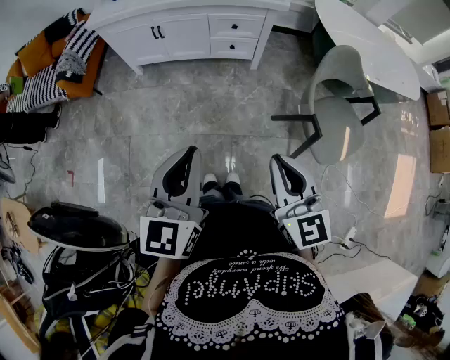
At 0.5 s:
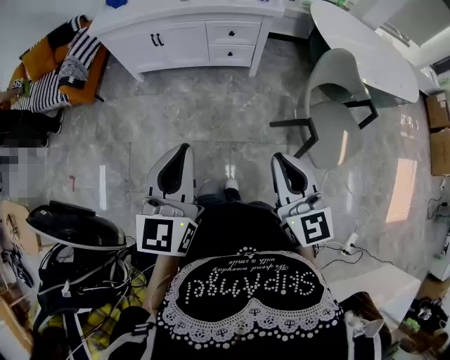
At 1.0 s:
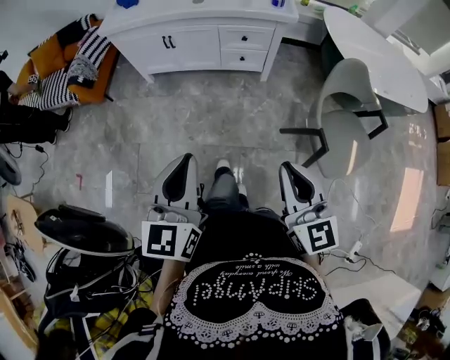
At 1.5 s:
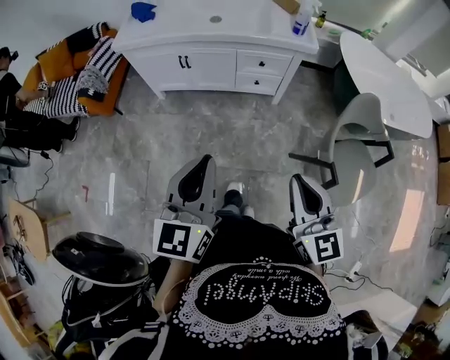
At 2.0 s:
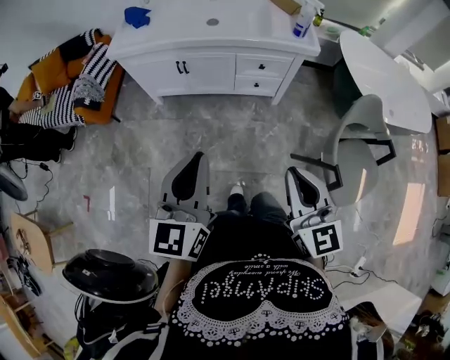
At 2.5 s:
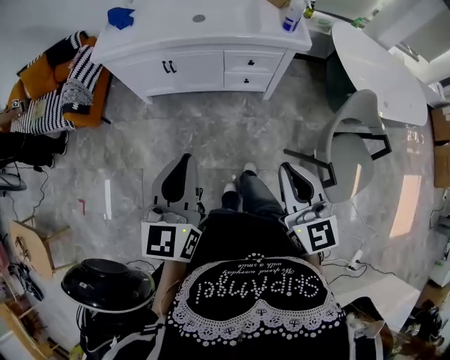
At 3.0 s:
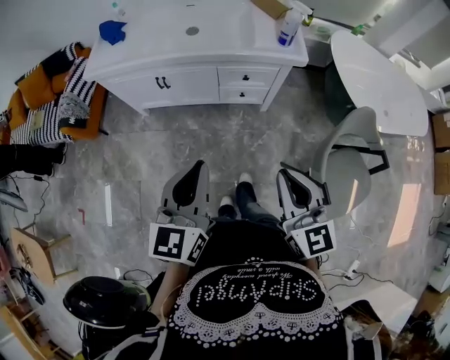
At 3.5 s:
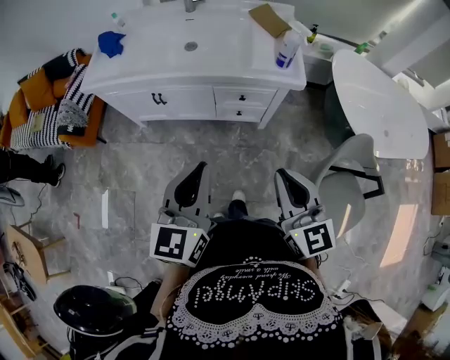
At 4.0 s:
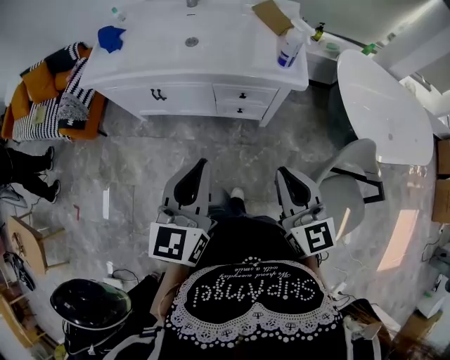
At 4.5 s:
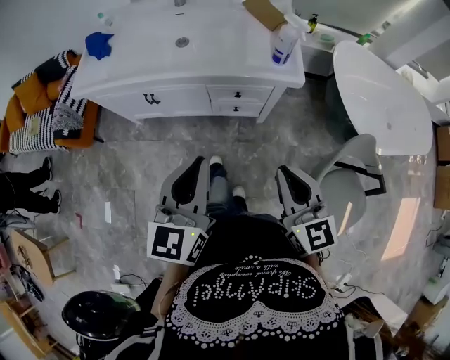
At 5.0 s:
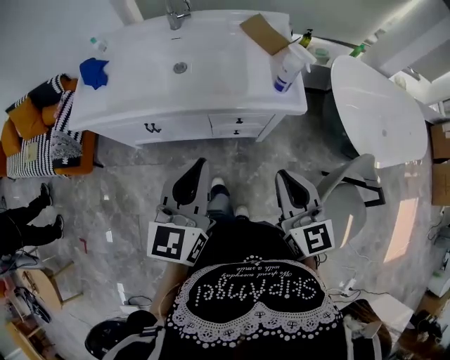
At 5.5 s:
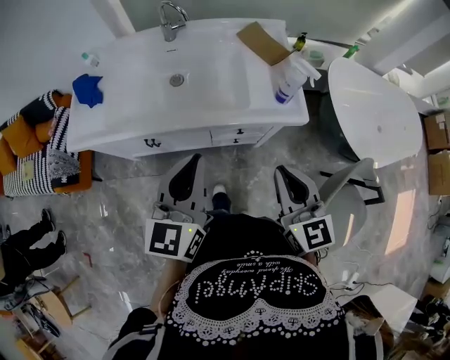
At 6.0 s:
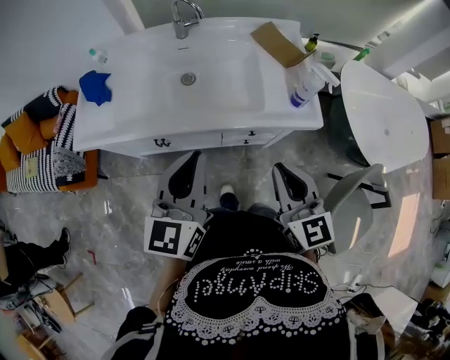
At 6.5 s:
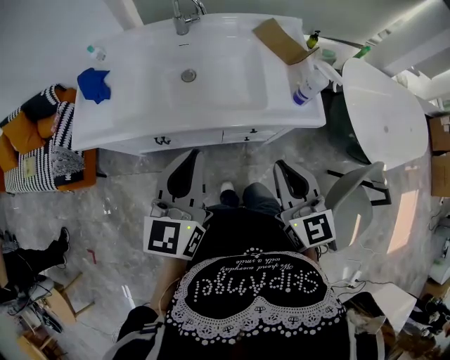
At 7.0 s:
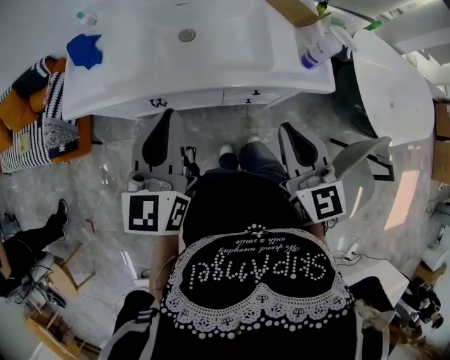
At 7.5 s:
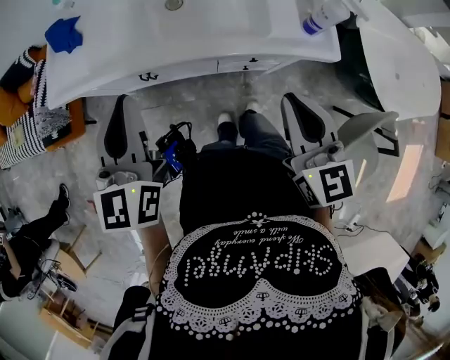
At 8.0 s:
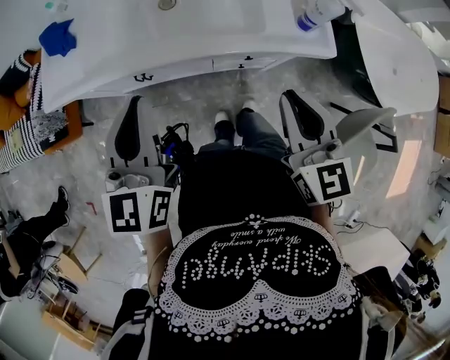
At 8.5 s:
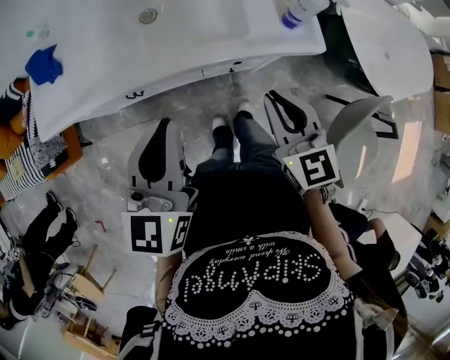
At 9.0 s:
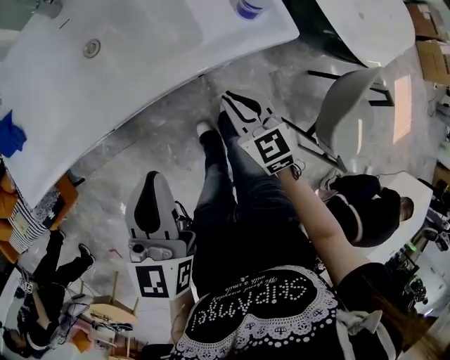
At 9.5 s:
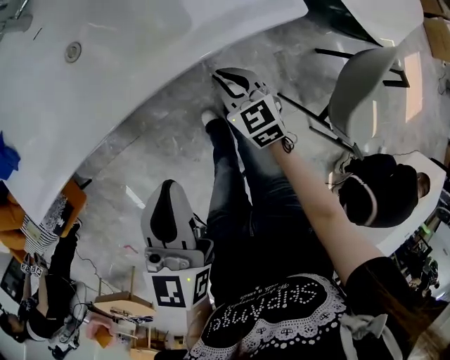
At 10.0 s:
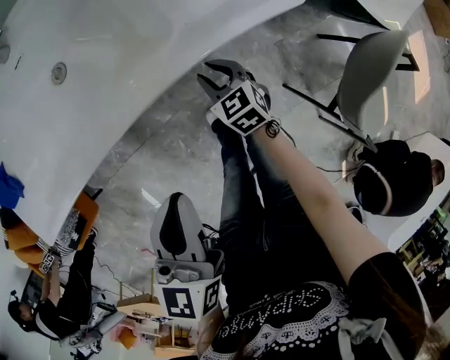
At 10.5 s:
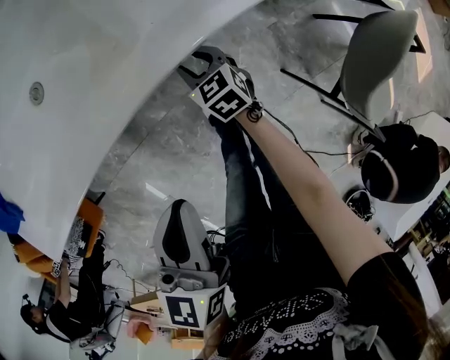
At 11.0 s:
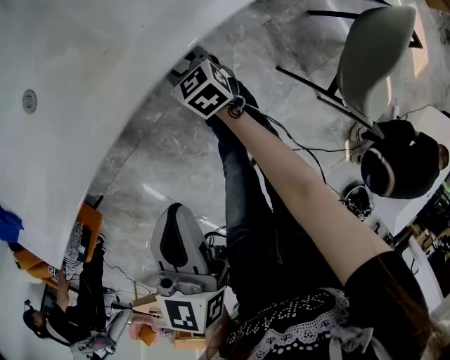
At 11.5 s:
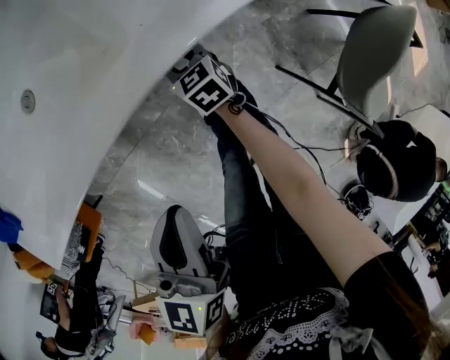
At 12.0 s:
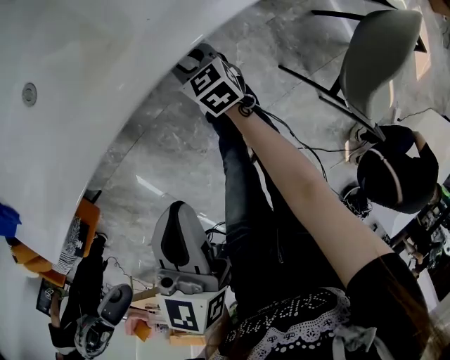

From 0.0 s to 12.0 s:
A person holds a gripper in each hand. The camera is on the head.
From 0.0 s to 2.0 s: The right gripper goes about 15 cm forward, while the left gripper travels forward and to the left by some 20 cm.
From 2.0 s to 4.0 s: The two grippers go roughly 25 cm forward and to the right.
From 4.0 s to 6.0 s: Both grippers travel together forward and to the left, about 25 cm.
From 6.0 s to 8.0 s: The left gripper moves to the left, about 5 cm.
From 8.0 s to 10.0 s: The left gripper heads downward and to the right, covering approximately 20 cm, and swivels roughly 30 degrees. The right gripper moves downward, roughly 40 cm, and turns by about 30 degrees.
From 10.0 s to 12.0 s: The right gripper is displaced downward by about 5 cm.

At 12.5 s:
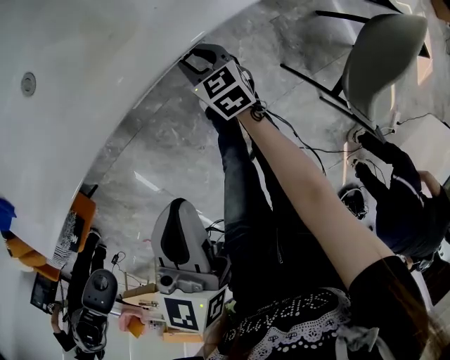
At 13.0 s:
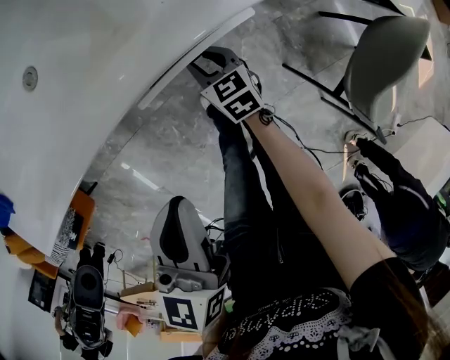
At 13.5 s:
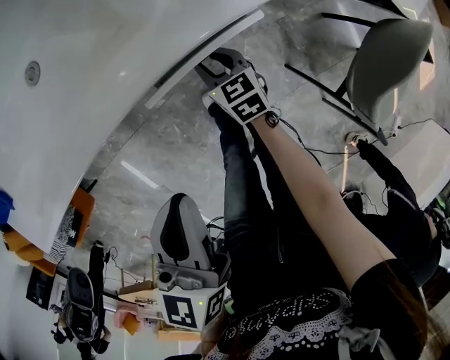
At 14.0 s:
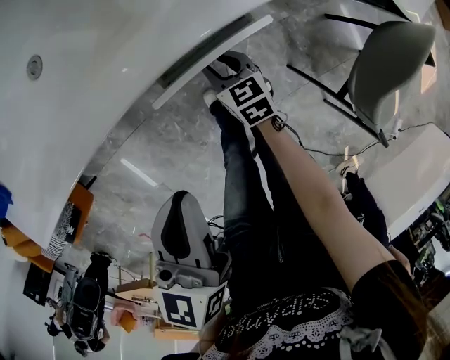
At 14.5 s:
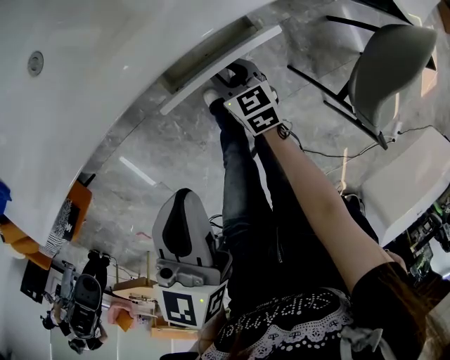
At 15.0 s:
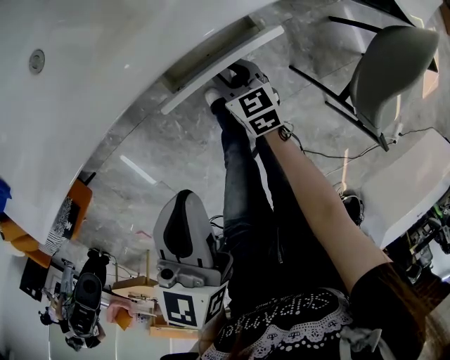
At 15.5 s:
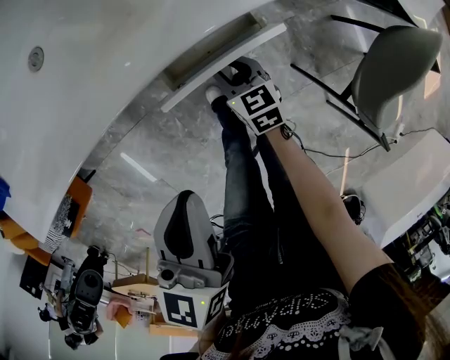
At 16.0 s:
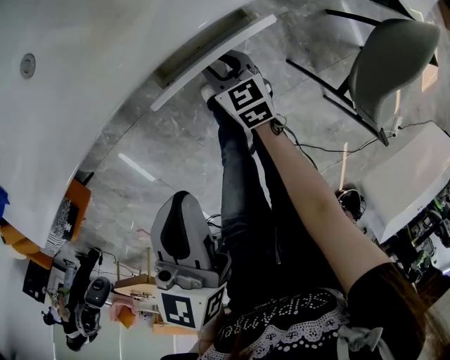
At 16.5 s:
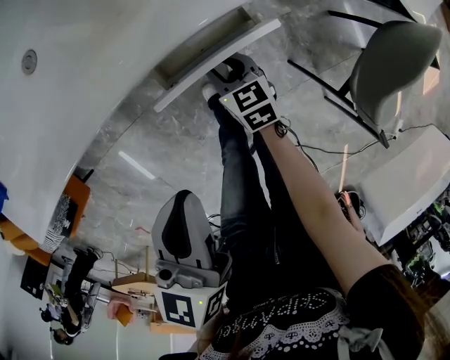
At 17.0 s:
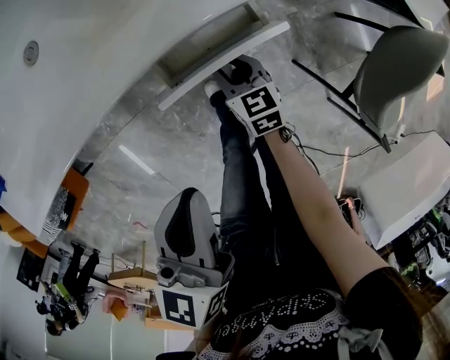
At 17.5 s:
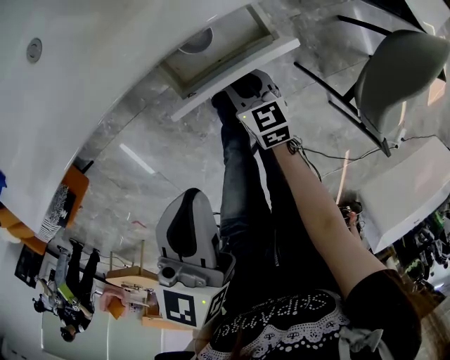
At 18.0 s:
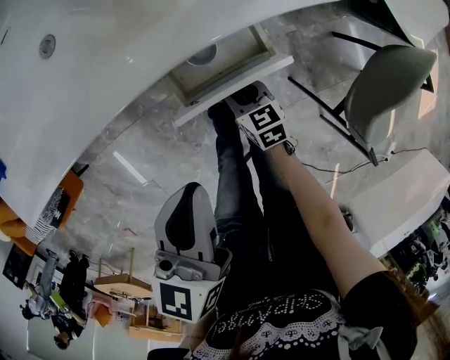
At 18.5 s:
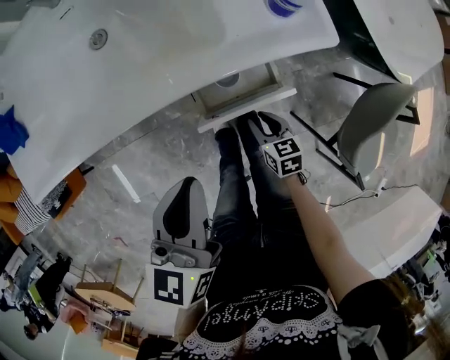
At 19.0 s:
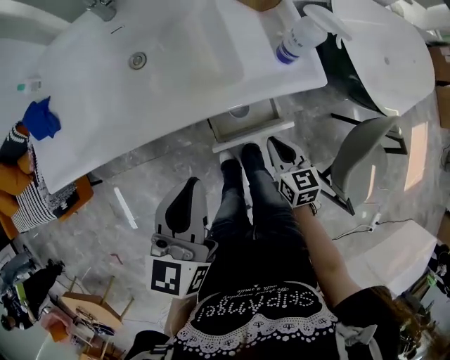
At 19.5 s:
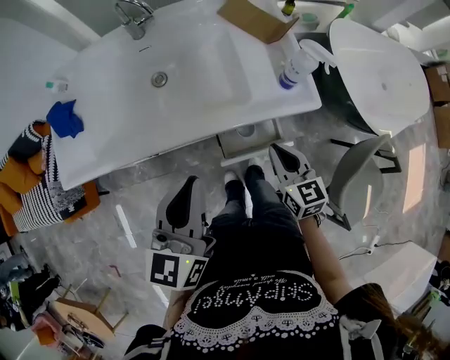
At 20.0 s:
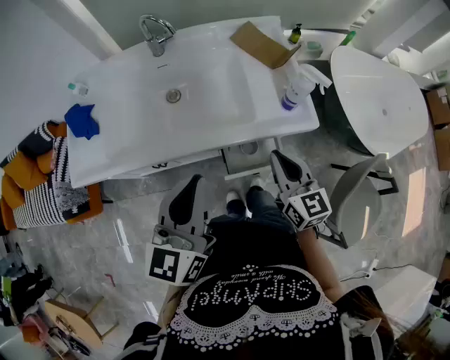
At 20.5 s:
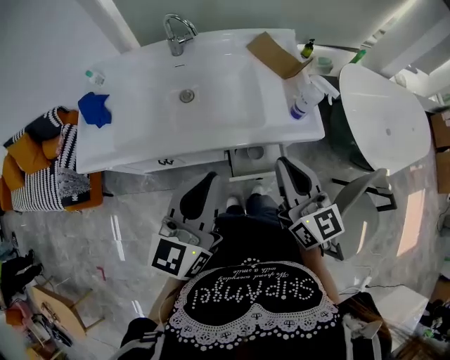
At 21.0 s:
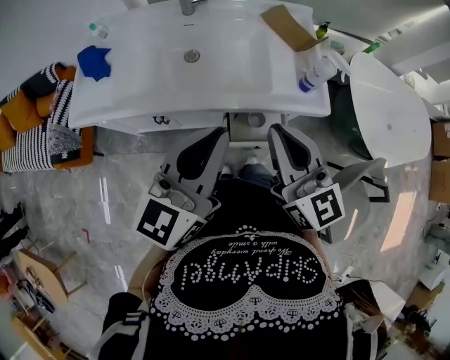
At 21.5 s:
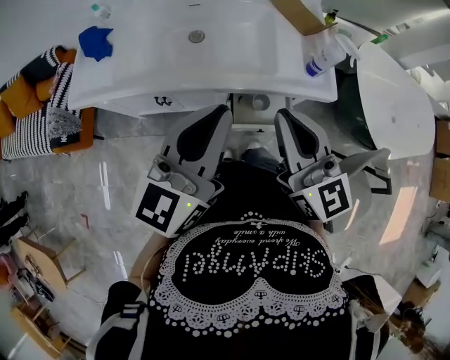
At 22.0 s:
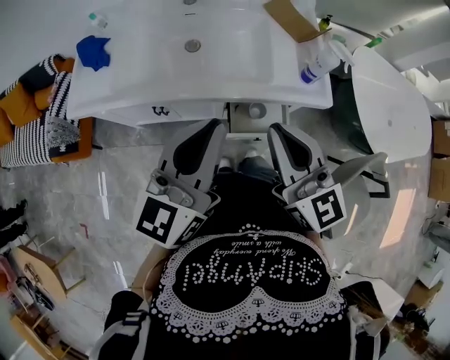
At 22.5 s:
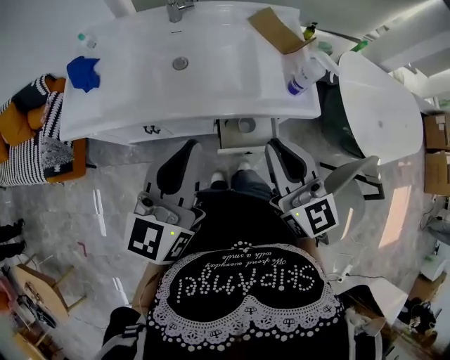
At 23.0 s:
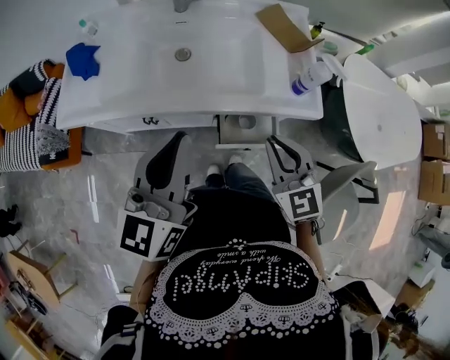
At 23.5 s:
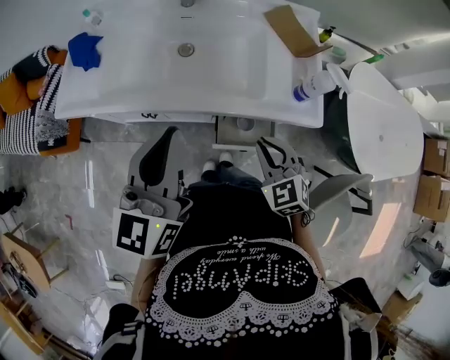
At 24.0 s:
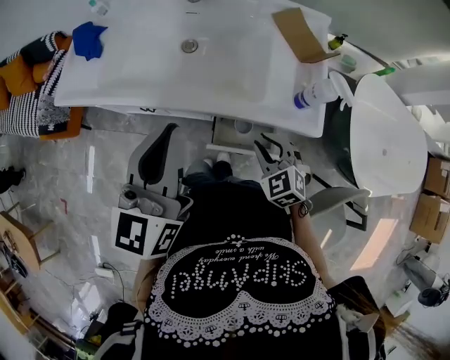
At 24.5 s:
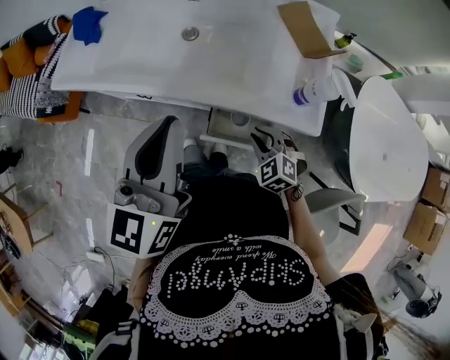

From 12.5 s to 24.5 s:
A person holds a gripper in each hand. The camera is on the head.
From 12.5 s to 14.5 s: The right gripper travels backward by about 5 cm.
From 14.5 s to 16.5 s: The grippers stay close to where they were, moving slightly.
From 16.5 s to 18.5 s: The right gripper is displaced backward and upward by approximately 10 cm, while the left gripper goes roughly 5 cm upward.
From 18.5 s to 20.5 s: The left gripper heads upward, covering roughly 15 cm, and turns by some 20 degrees. The right gripper is displaced upward by about 40 cm, angles its fingers upward, by roughly 50 degrees, and closes.
From 22.5 s to 24.5 s: The left gripper shifts by approximately 5 cm. Meanwhile the right gripper shifts approximately 30 cm downward, and tilts its fingers roughly 50 degrees downward.

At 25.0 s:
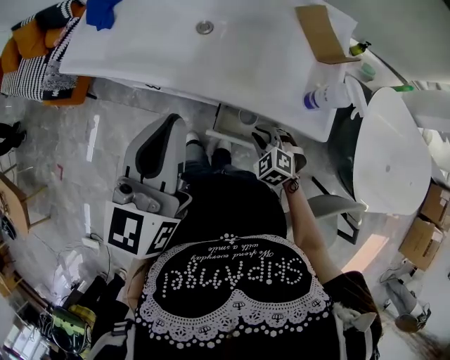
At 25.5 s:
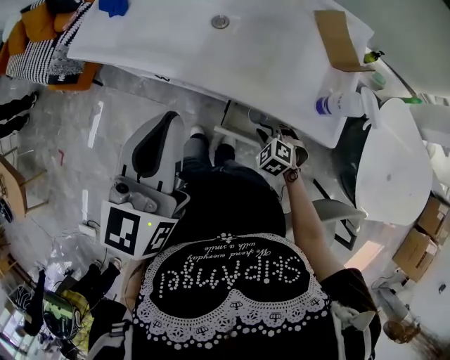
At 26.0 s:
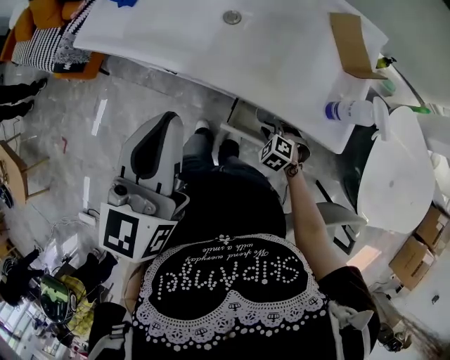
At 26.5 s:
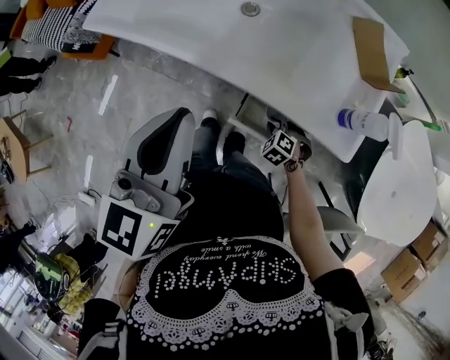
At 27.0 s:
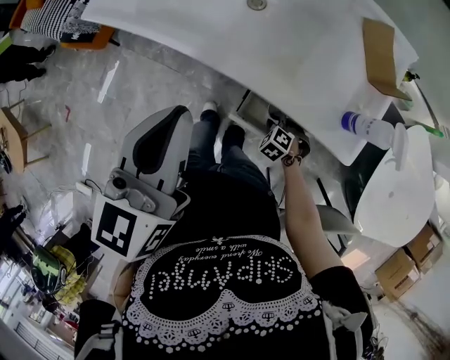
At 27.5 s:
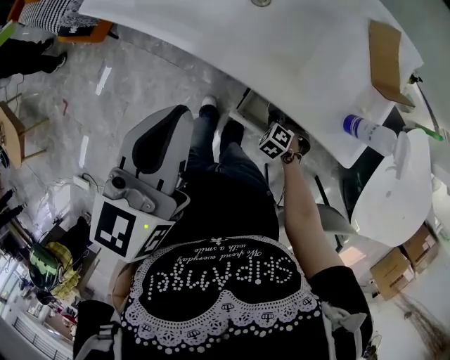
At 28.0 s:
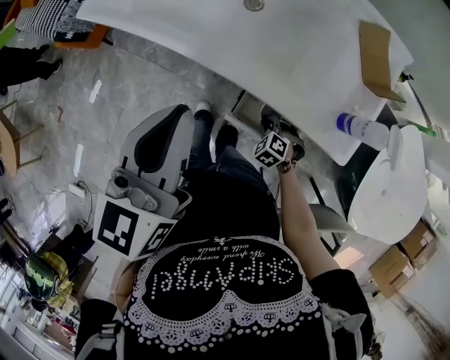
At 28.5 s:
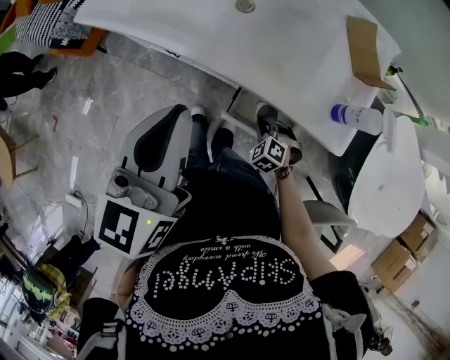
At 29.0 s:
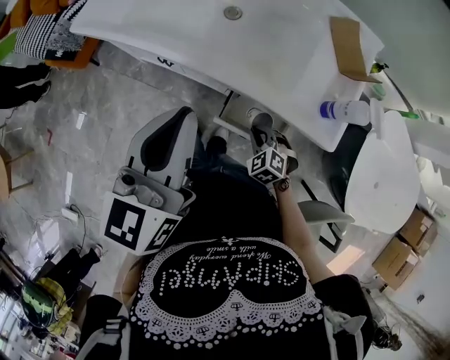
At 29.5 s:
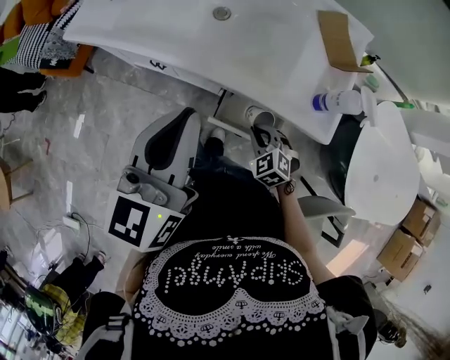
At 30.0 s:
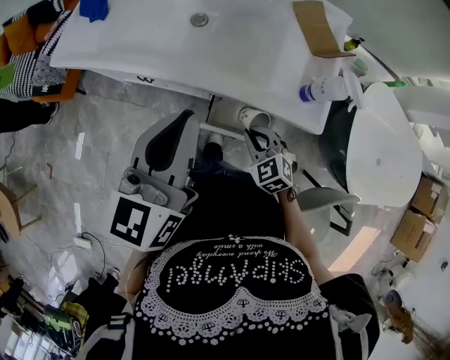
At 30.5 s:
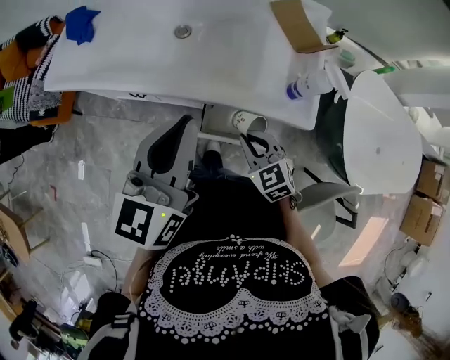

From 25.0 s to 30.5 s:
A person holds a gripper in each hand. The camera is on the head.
From 25.0 s to 27.0 s: The right gripper heads downward, covering some 15 cm; the left gripper ends up roughly 5 cm from where it was.
From 27.0 s to 28.5 s: The right gripper is displaced upward by about 5 cm.
From 28.5 s to 30.5 s: The right gripper goes some 20 cm upward, and changes its angle by approximately 40 degrees; the left gripper shifts roughly 5 cm to the right.
